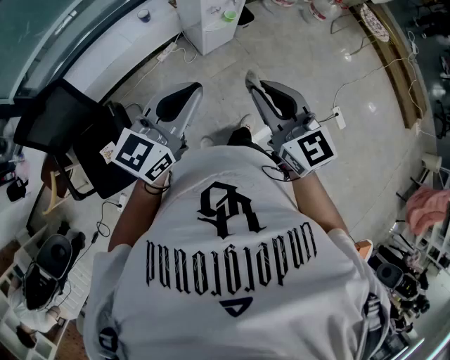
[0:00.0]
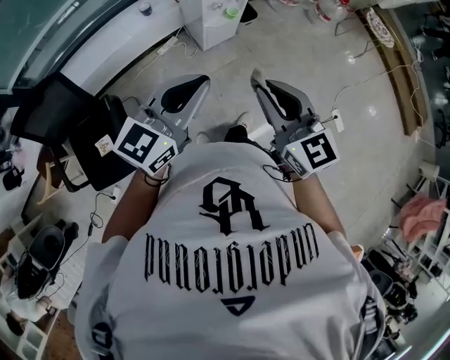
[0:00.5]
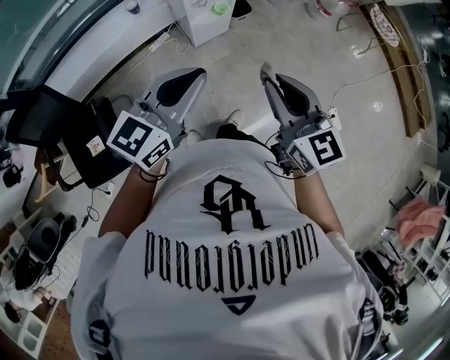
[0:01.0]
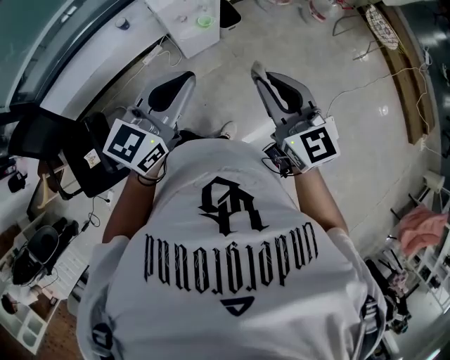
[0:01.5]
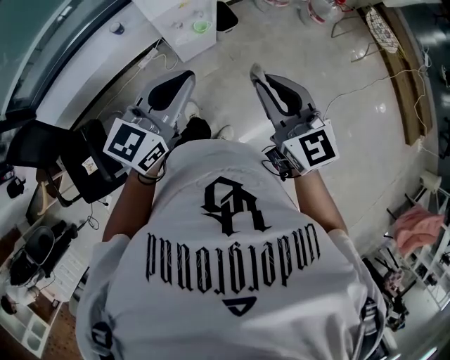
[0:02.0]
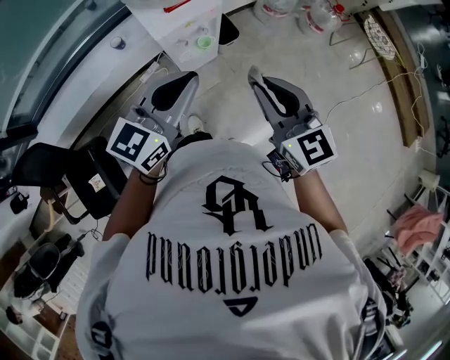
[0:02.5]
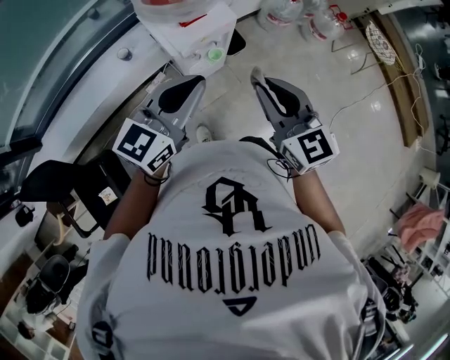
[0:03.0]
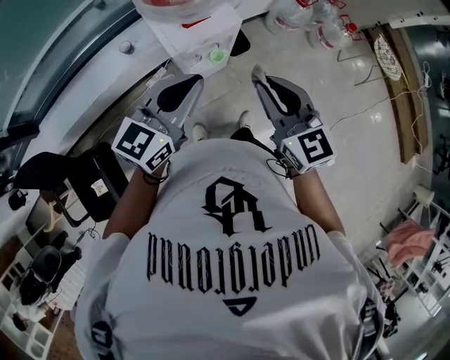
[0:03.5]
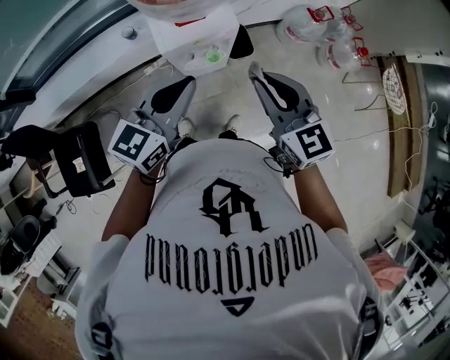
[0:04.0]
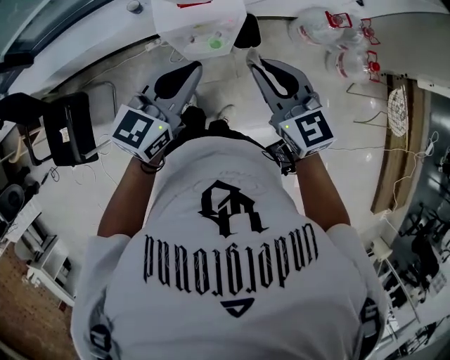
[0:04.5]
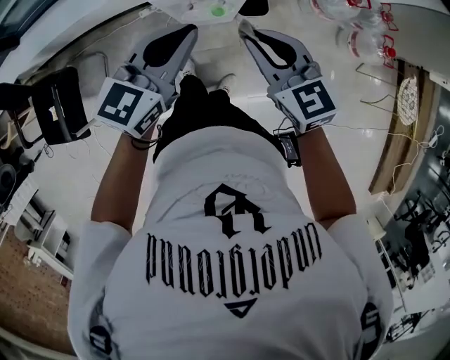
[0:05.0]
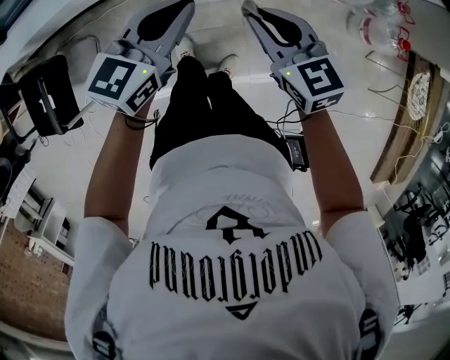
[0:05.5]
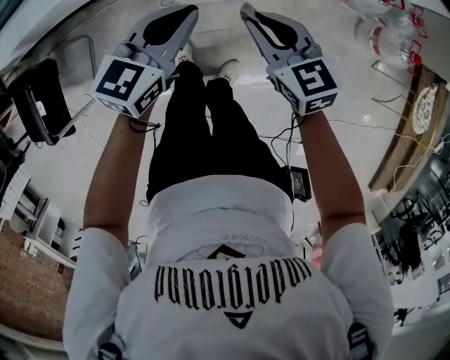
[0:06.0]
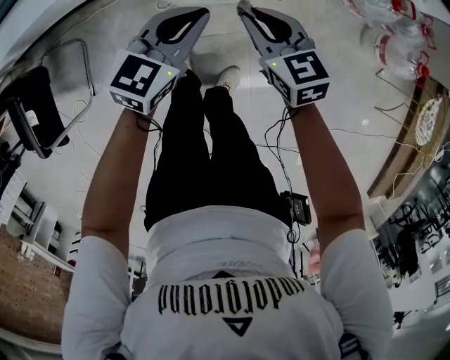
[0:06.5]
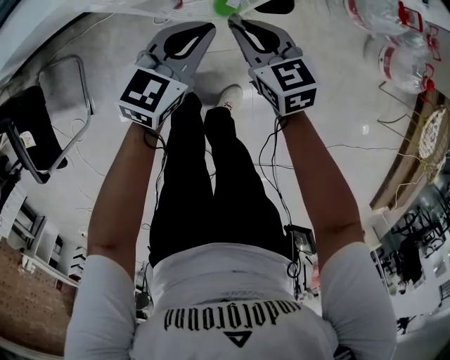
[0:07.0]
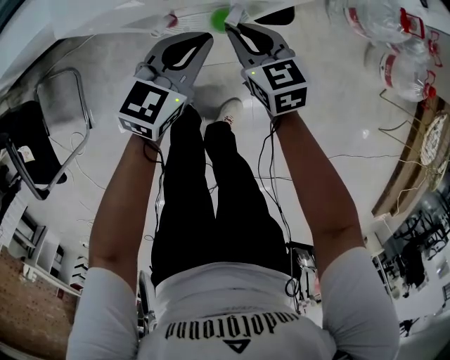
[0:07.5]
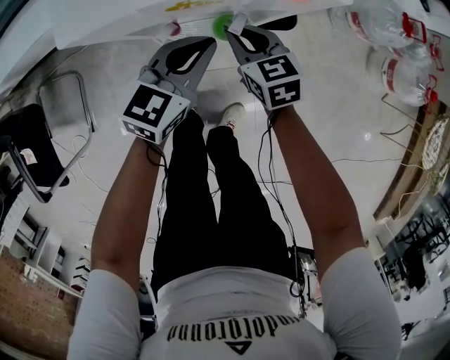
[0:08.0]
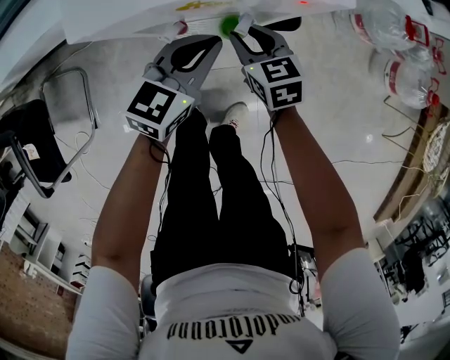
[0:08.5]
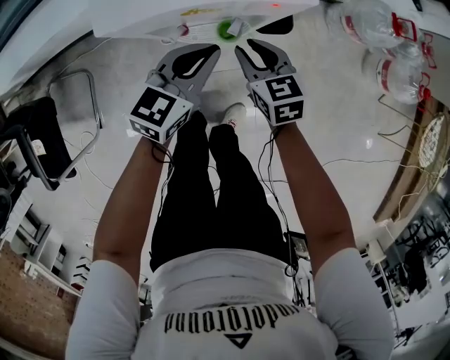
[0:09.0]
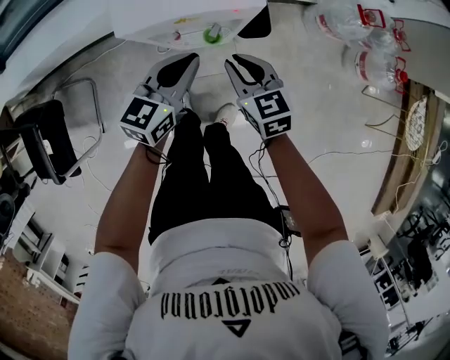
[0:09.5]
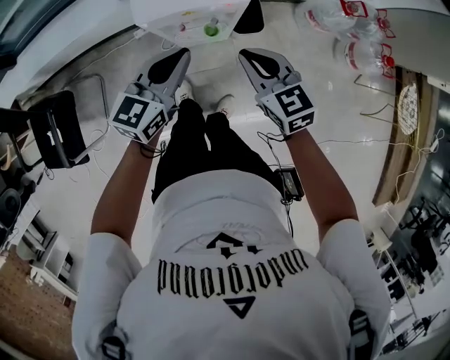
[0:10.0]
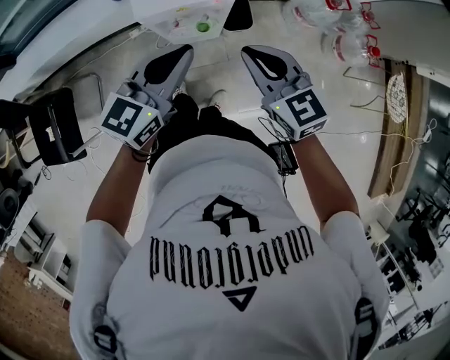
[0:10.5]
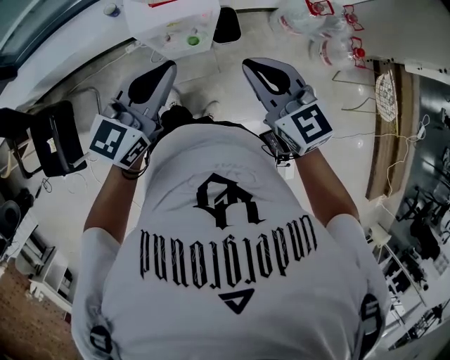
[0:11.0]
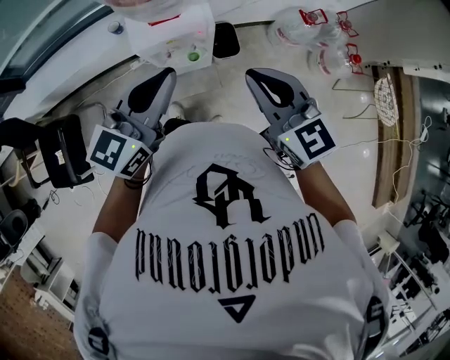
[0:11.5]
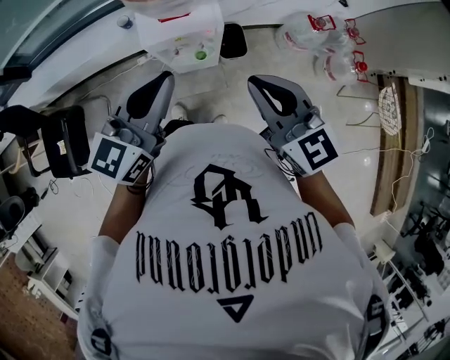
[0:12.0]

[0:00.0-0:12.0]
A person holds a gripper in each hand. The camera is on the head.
0:00.0 to 0:02.0: The right gripper is displaced to the right and forward by roughly 30 cm. The left gripper is displaced forward and to the right by approximately 30 cm.
0:02.0 to 0:04.0: Both grippers move forward, approximately 20 cm.
0:04.0 to 0:06.0: The two grippers go about 30 cm downward. The right gripper rotates roughly 20 degrees.
0:06.0 to 0:08.0: The left gripper moves downward, approximately 20 cm, while the right gripper moves downward and forward, approximately 25 cm.
0:08.0 to 0:10.0: The grippers both shift upward by about 30 cm.
0:10.0 to 0:12.0: Both grippers move upward, approximately 25 cm.

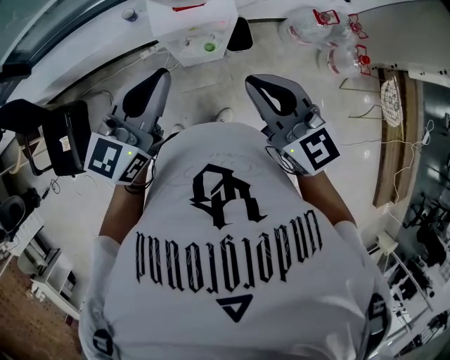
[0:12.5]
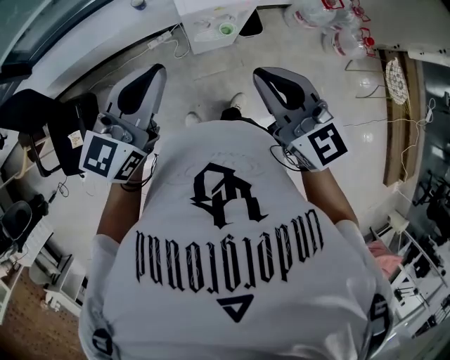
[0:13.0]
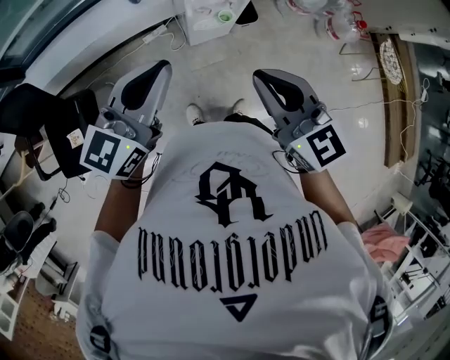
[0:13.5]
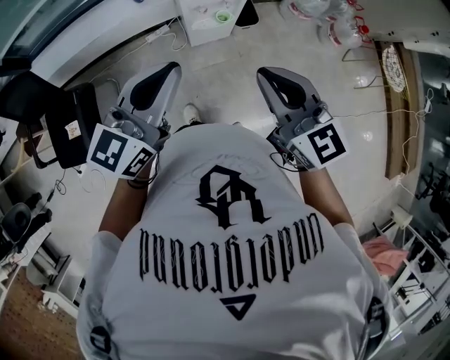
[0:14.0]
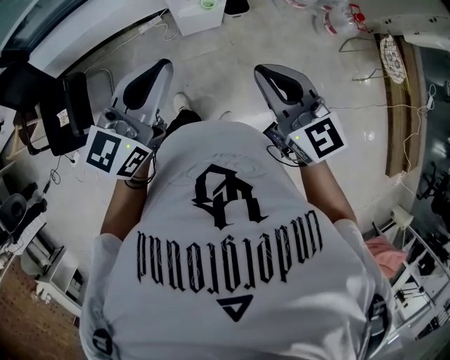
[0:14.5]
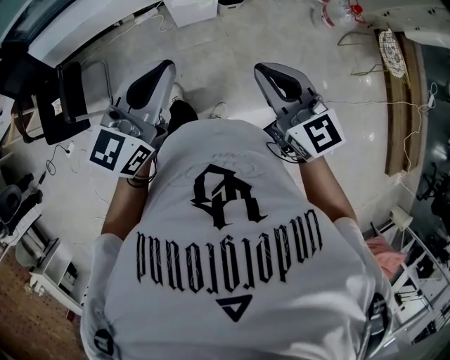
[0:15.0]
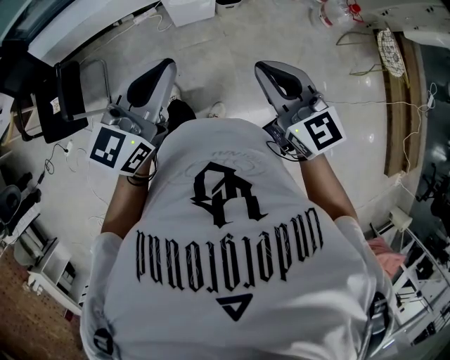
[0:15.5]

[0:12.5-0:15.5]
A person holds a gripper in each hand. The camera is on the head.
0:12.5 to 0:14.0: Both grippers move backward and to the left, about 20 cm.
0:14.0 to 0:15.5: The right gripper travels to the right and backward by approximately 20 cm, while the left gripper moves backward and to the right, some 20 cm.

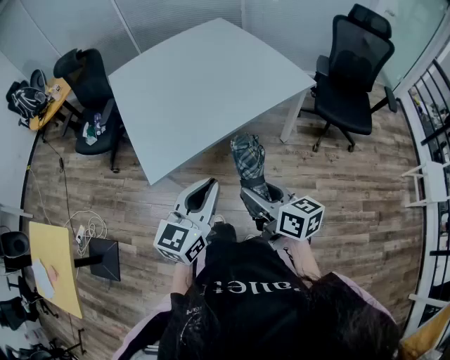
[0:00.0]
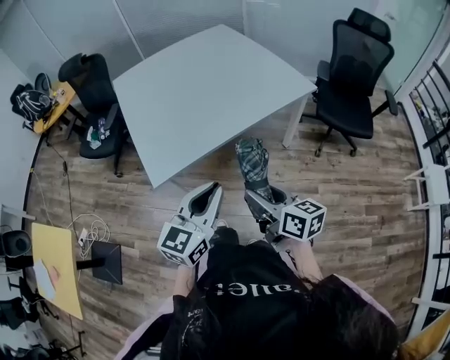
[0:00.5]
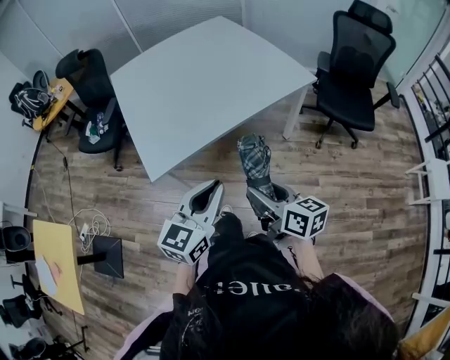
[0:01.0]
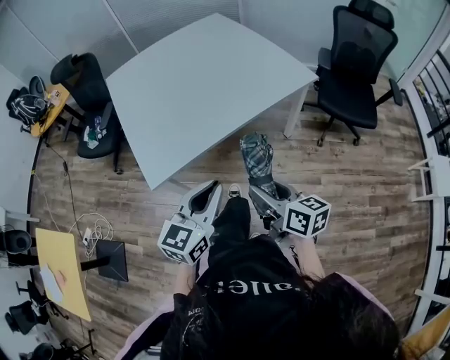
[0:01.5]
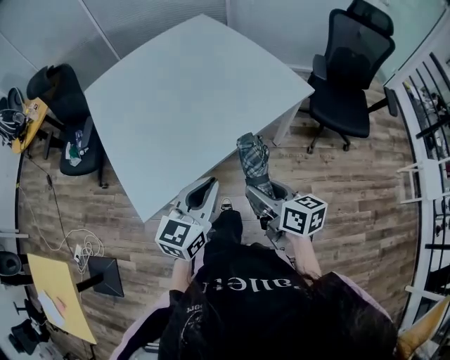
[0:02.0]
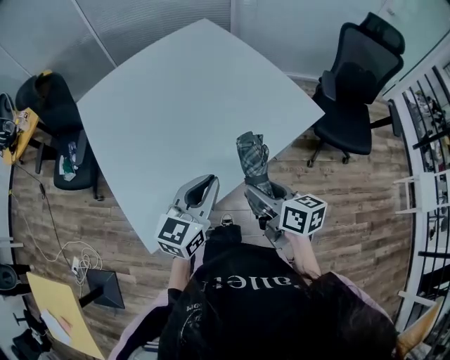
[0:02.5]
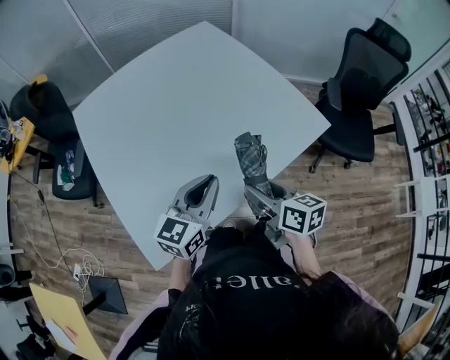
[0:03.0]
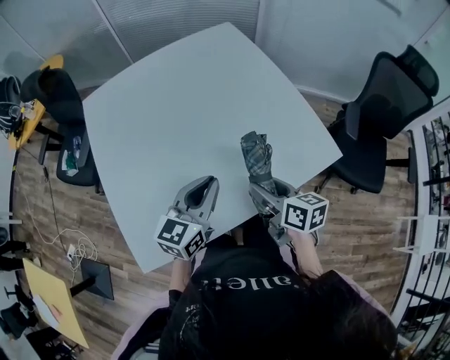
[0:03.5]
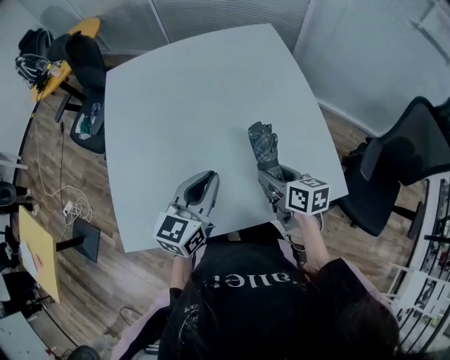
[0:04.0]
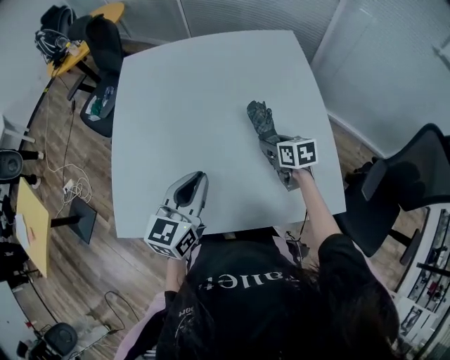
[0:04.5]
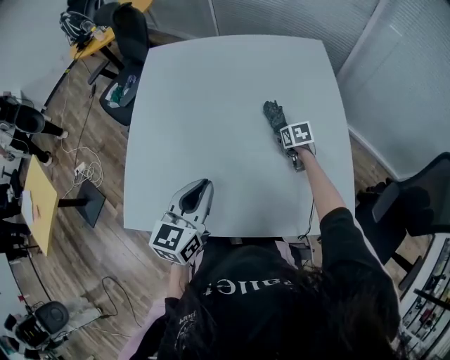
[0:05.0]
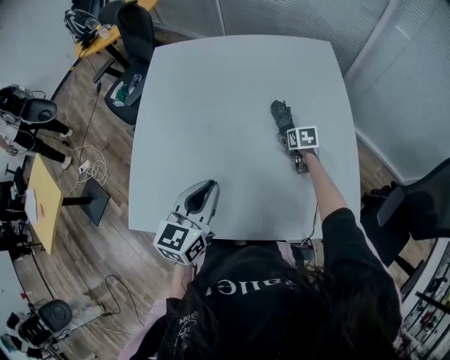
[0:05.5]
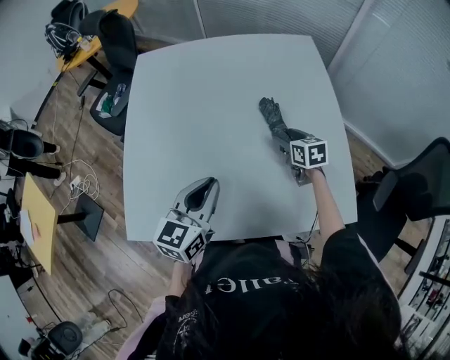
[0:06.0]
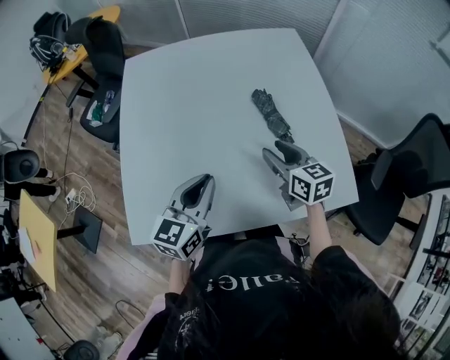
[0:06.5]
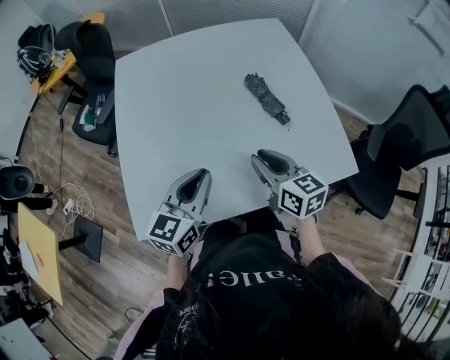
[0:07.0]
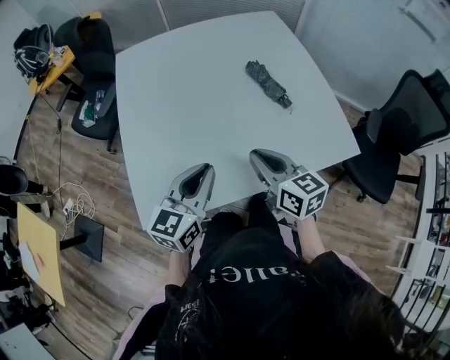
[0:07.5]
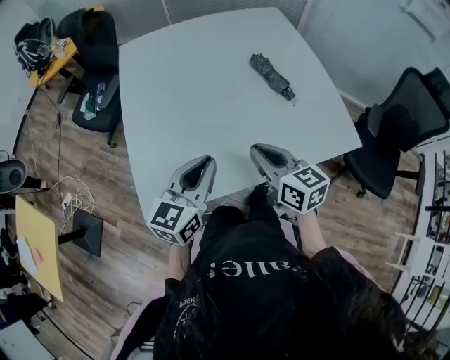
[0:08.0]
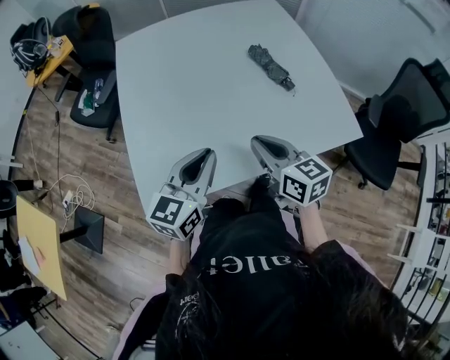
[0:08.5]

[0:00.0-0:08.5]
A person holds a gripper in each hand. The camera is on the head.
0:00.0 to 0:02.0: The grippers both shift forward by roughly 15 cm.
0:02.0 to 0:04.0: Both grippers travel together forward, roughly 35 cm. The left gripper rotates some 20 degrees. The right gripper changes its angle by approximately 20 degrees.
0:04.0 to 0:06.5: The left gripper moves to the left, some 10 cm, while the right gripper heads to the left, covering some 5 cm, and goes forward and returns, approximately 25 cm each way.
0:06.5 to 0:08.5: The left gripper travels backward and to the left by some 15 cm, while the right gripper shifts approximately 20 cm backward and to the left, and closes its fingers.

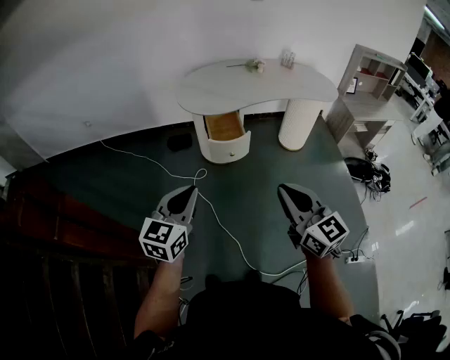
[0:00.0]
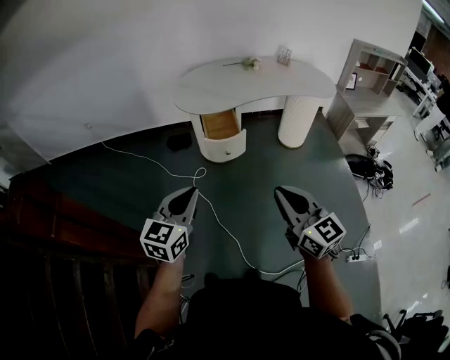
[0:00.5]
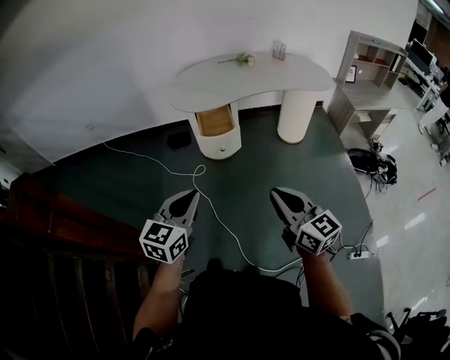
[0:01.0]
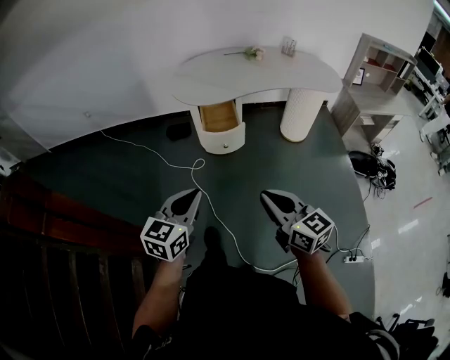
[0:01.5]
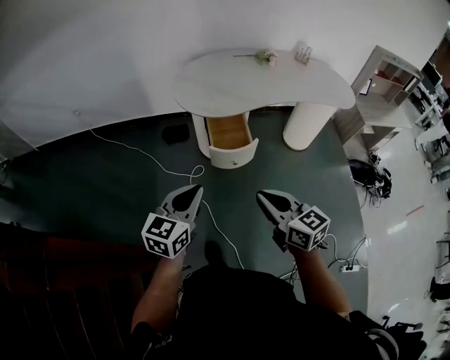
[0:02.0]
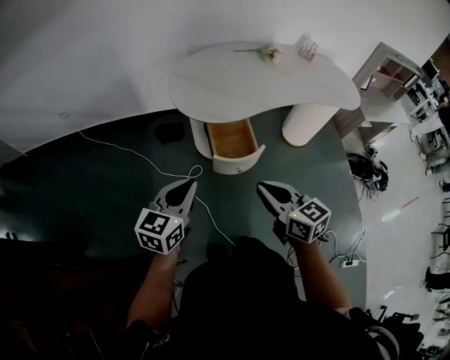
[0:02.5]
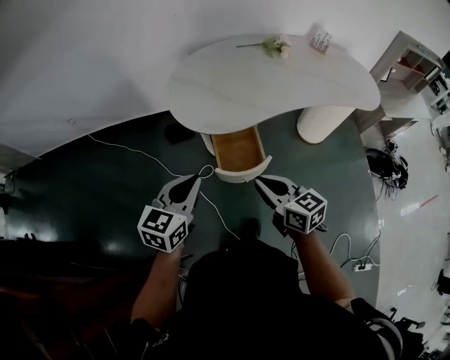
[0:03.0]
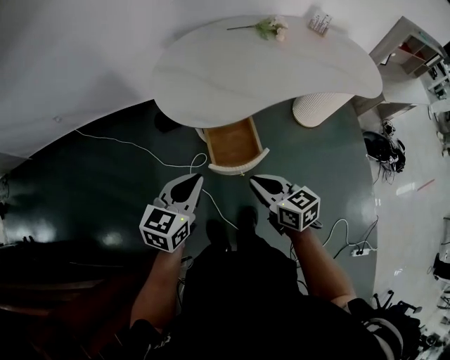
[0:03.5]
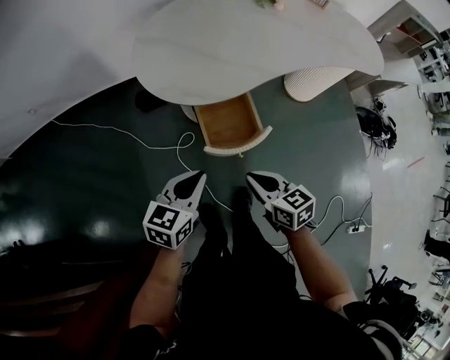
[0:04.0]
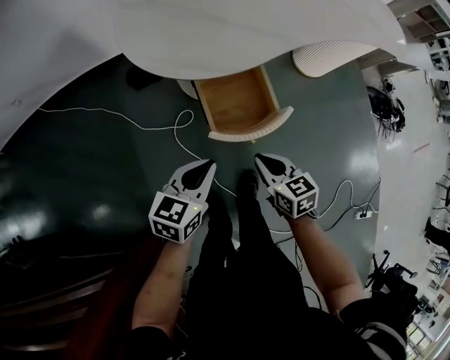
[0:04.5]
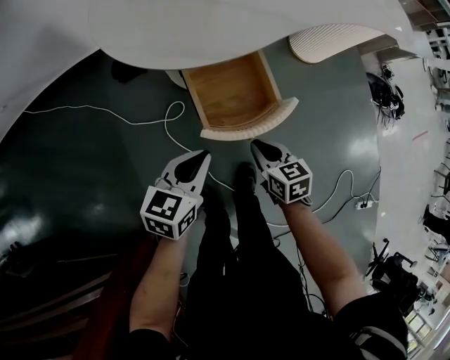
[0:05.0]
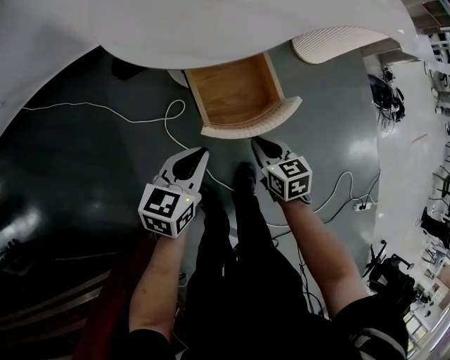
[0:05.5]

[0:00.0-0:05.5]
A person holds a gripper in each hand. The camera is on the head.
0:00.0 to 0:02.0: The left gripper travels forward by about 15 cm. The right gripper heads forward and downward, covering approximately 20 cm, and turns by about 20 degrees.
0:02.0 to 0:03.5: The left gripper moves forward, approximately 25 cm. Meanwhile the right gripper is displaced forward and downward by roughly 30 cm.
0:03.5 to 0:05.5: The grippers both shift downward by roughly 30 cm. The right gripper swivels about 30 degrees.
